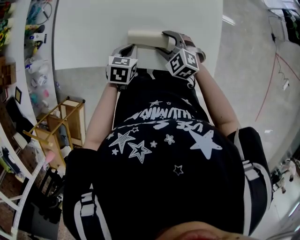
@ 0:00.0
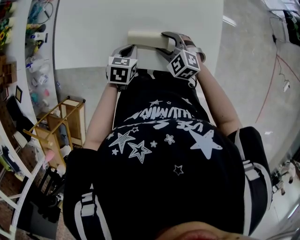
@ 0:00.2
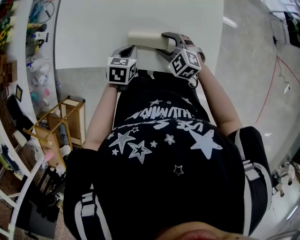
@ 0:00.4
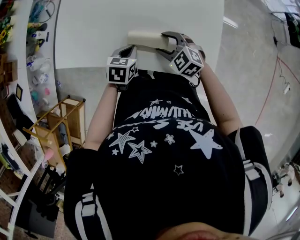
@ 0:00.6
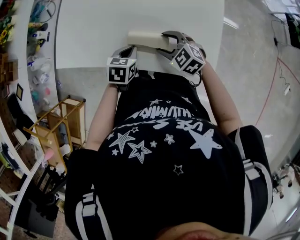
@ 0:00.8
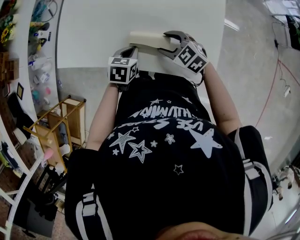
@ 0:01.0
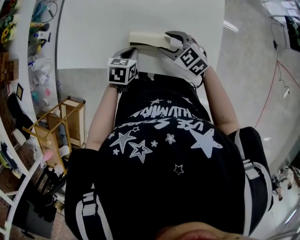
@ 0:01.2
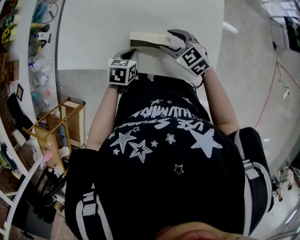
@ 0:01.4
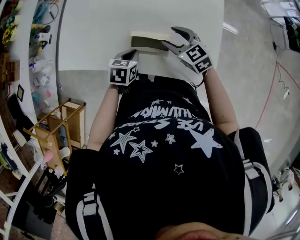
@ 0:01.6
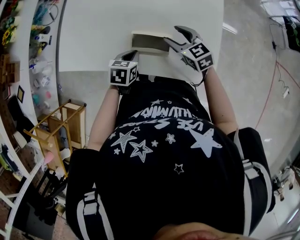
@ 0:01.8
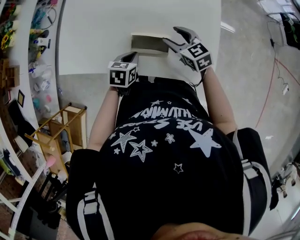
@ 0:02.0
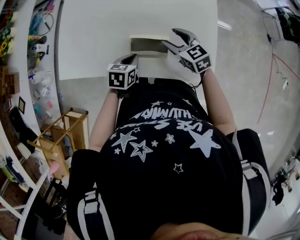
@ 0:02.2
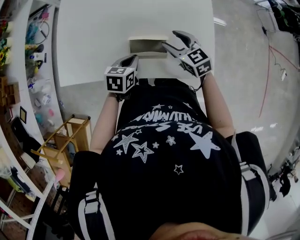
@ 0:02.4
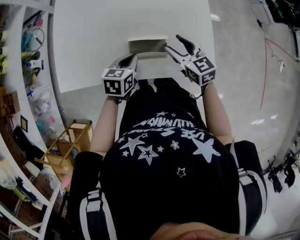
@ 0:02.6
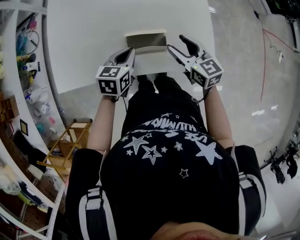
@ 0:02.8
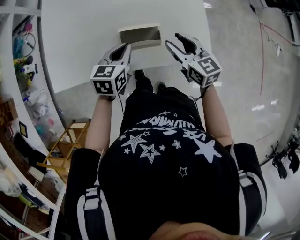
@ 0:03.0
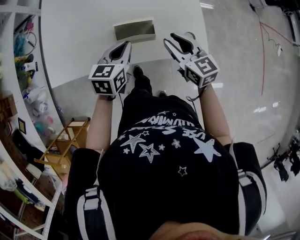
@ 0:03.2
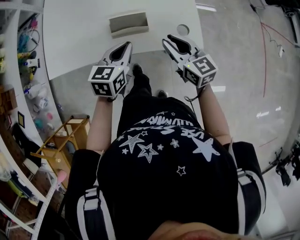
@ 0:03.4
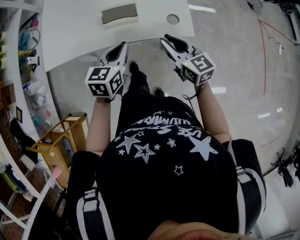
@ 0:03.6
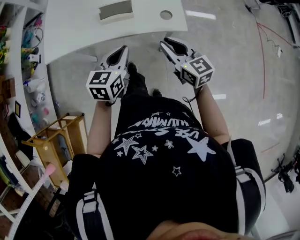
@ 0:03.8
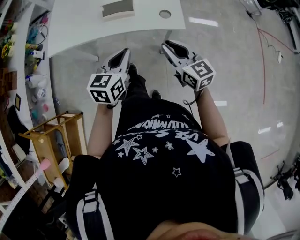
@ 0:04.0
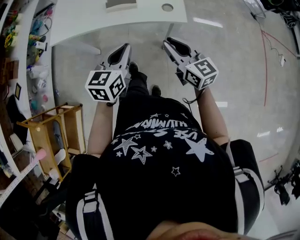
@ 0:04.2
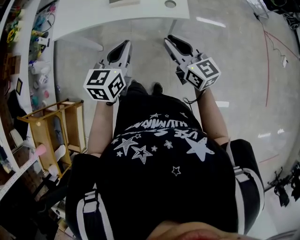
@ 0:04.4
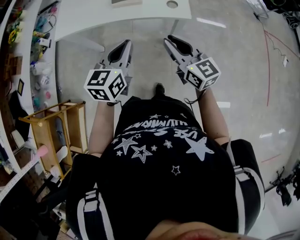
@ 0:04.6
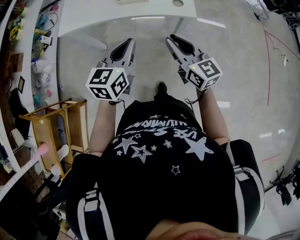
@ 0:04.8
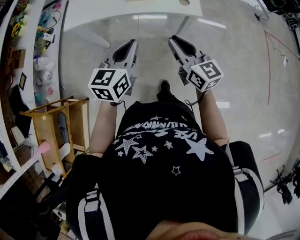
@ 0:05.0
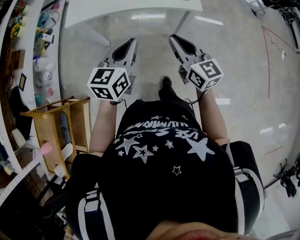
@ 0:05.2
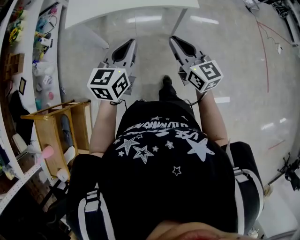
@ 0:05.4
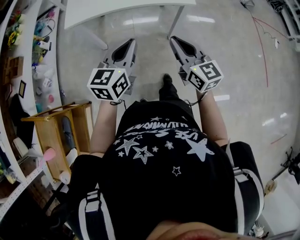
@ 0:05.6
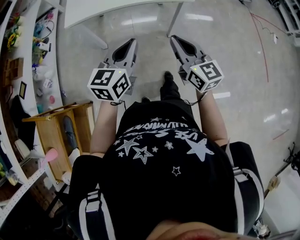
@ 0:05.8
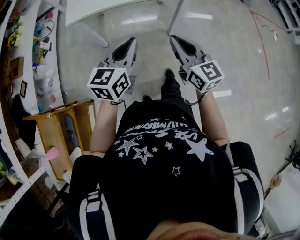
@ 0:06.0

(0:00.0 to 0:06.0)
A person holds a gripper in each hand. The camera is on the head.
0:00.0 - 0:01.6: The right gripper changes place by roughly 5 cm, and rotates approximately 20 degrees.
0:01.6 - 0:03.0: The right gripper moves backward, some 10 cm, and changes its angle by approximately 40 degrees; the left gripper moves upward, about 5 cm, and swivels about 20 degrees.
0:03.0 - 0:04.4: The two grippers go about 30 cm backward. The right gripper closes.
0:04.4 - 0:06.0: The grippers both shift backward and to the left by some 25 cm.

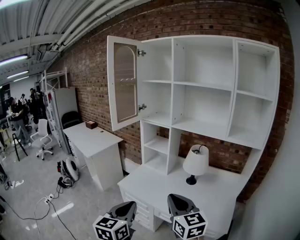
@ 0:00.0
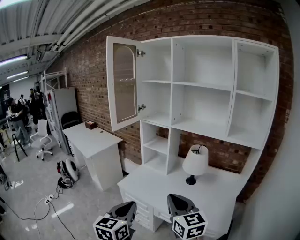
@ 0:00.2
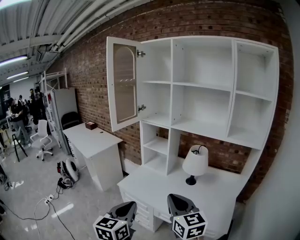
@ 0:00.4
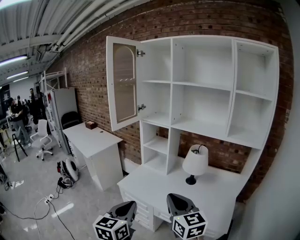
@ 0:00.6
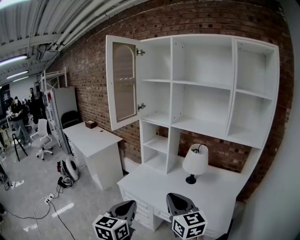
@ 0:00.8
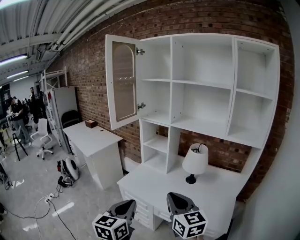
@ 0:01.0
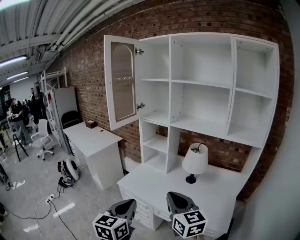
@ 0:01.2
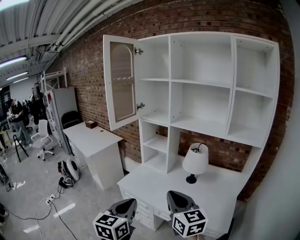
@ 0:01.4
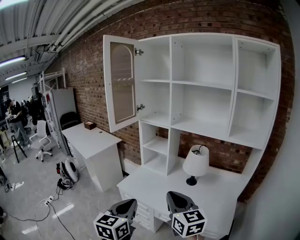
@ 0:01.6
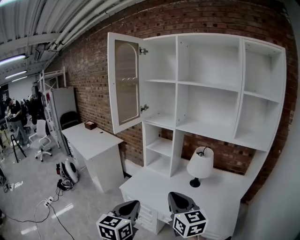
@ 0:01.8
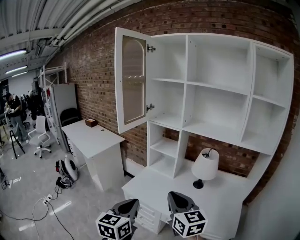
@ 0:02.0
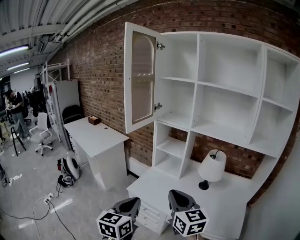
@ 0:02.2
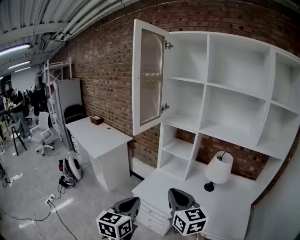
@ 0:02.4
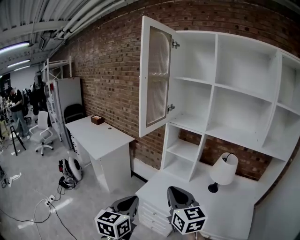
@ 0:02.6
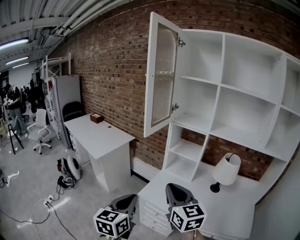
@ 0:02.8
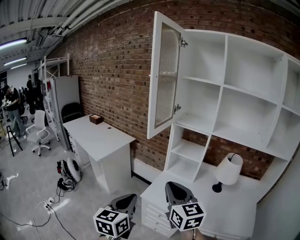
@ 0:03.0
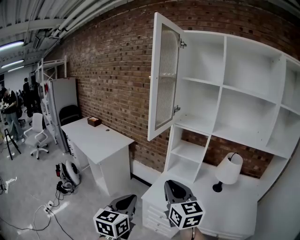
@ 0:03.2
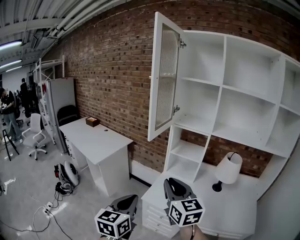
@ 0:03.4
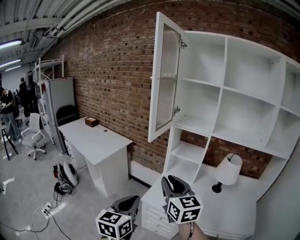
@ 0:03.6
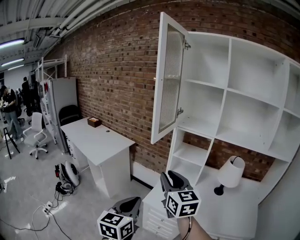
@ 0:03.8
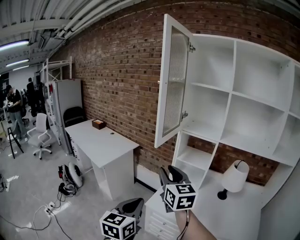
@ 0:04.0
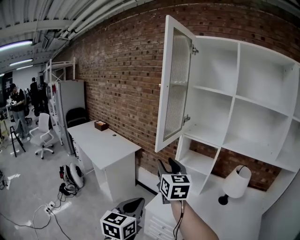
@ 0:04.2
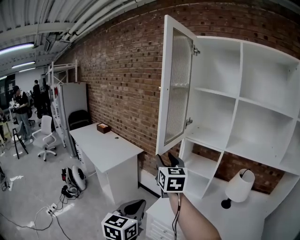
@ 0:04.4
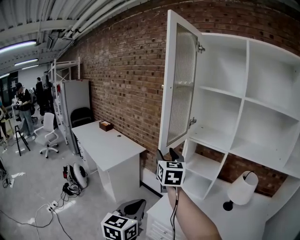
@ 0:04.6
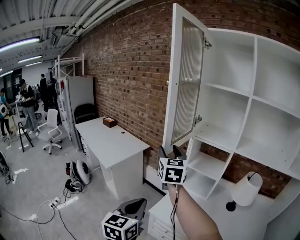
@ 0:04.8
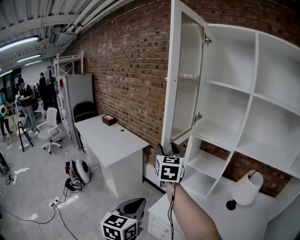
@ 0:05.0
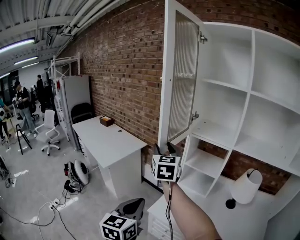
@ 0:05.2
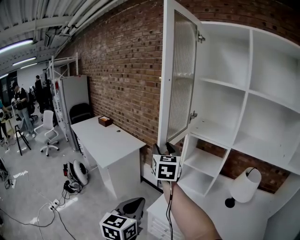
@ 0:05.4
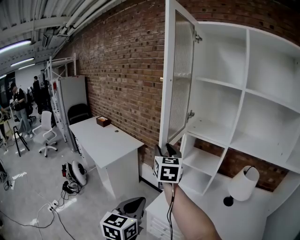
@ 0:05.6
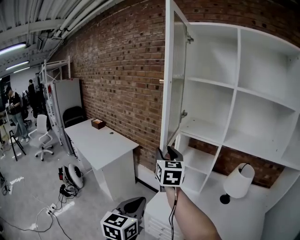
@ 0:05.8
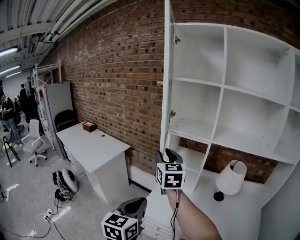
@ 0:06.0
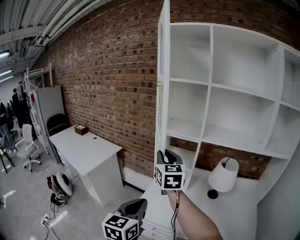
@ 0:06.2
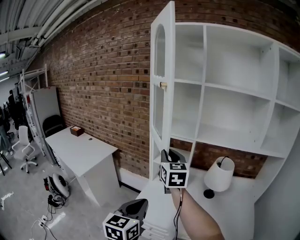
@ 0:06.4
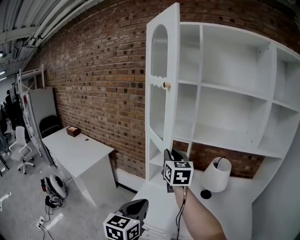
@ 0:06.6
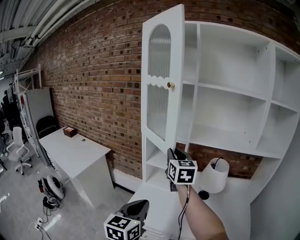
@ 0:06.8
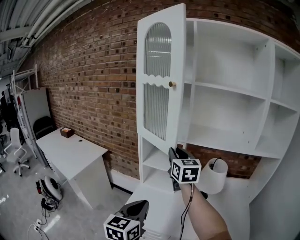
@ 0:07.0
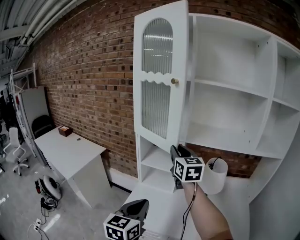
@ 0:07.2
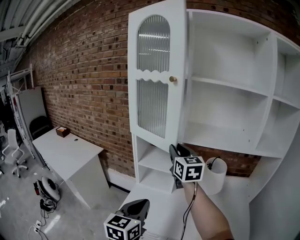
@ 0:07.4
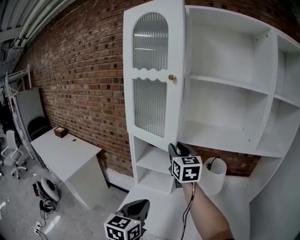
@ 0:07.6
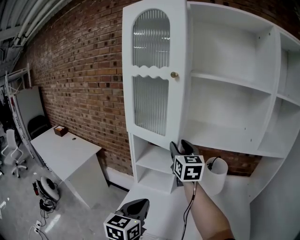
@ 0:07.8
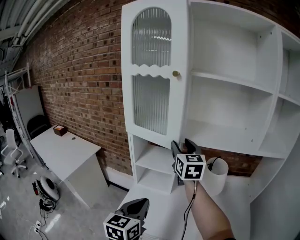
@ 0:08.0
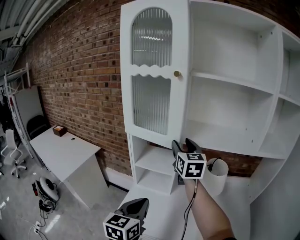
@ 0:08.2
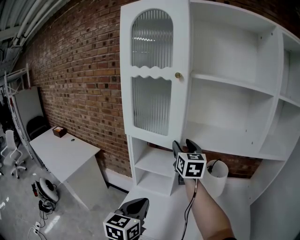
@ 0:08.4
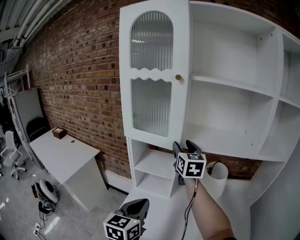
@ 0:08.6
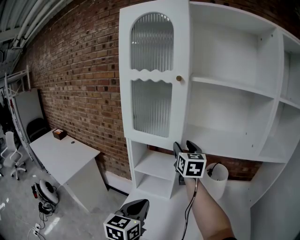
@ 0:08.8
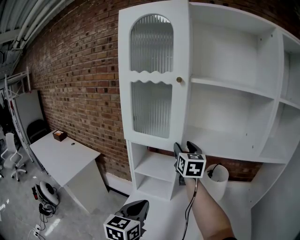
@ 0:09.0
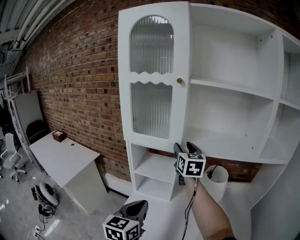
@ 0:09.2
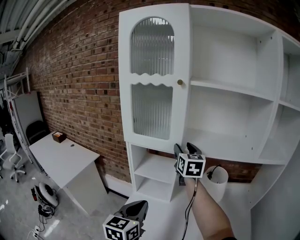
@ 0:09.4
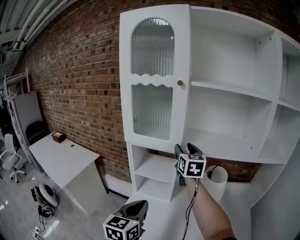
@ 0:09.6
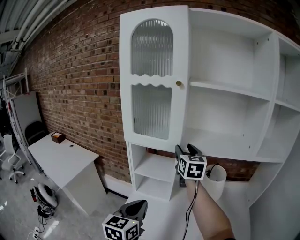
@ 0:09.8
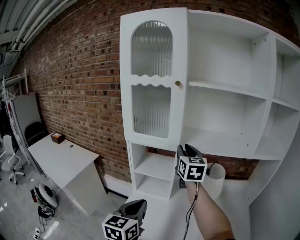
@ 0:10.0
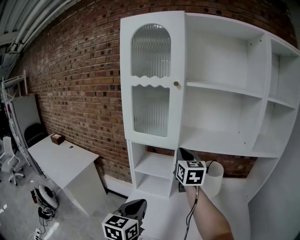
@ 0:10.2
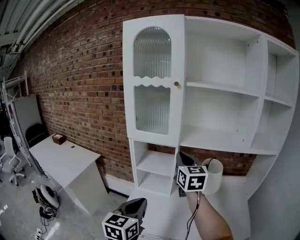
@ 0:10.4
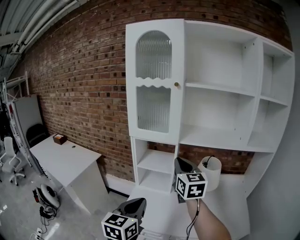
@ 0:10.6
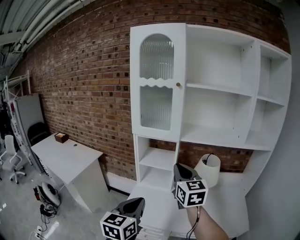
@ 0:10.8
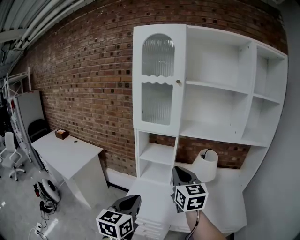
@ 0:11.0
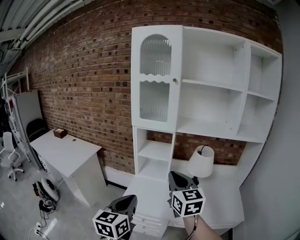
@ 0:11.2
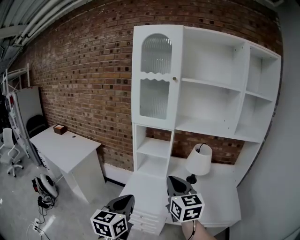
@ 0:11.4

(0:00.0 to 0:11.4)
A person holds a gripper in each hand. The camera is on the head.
0:00.0 - 0:01.4: The grippers stay close to where they were, moving slightly.
0:01.4 - 0:02.8: Both grippers move to the left and forward, roughly 30 cm.
0:02.8 - 0:04.2: The left gripper travels forward by roughly 5 cm; the right gripper travels forward and to the left by roughly 20 cm, and opens its fingers.
0:04.2 - 0:05.6: The left gripper travels forward by about 5 cm; the right gripper is displaced forward by approximately 10 cm.
0:05.6 - 0:07.2: The left gripper goes roughly 20 cm to the right. The right gripper goes roughly 30 cm to the right, and closes up.
0:07.2 - 0:08.6: The right gripper travels forward and to the right by some 10 cm, and opens, while the left gripper travels forward by roughly 10 cm.
0:08.6 - 0:10.0: The right gripper closes.
0:10.0 - 0:11.4: The right gripper heads backward, covering approximately 35 cm, and closes its fingers, while the left gripper moves backward, about 20 cm.

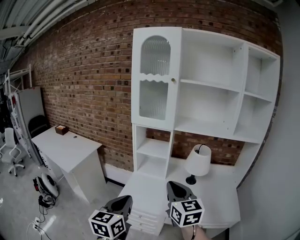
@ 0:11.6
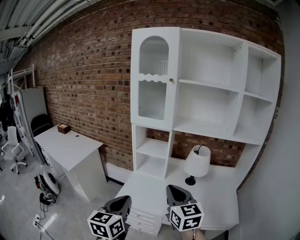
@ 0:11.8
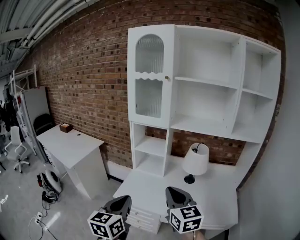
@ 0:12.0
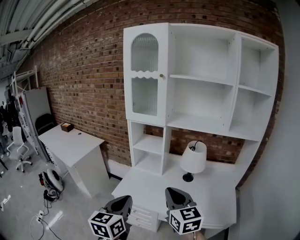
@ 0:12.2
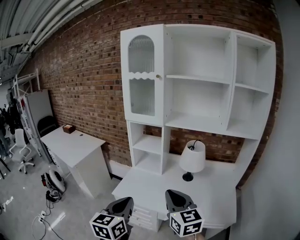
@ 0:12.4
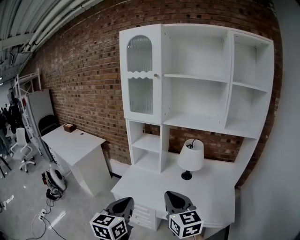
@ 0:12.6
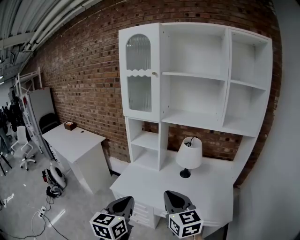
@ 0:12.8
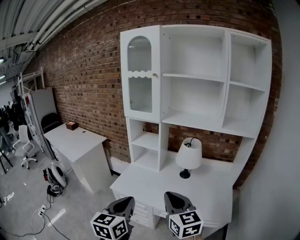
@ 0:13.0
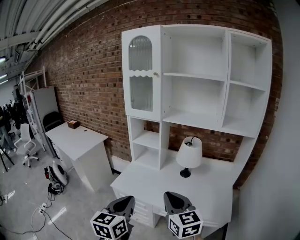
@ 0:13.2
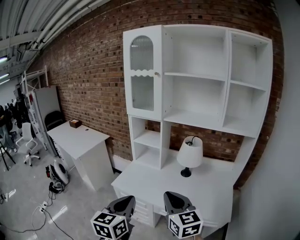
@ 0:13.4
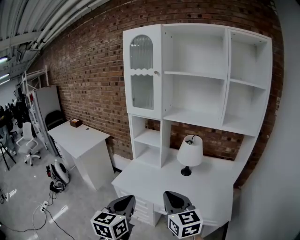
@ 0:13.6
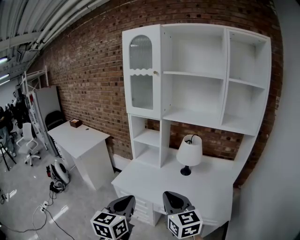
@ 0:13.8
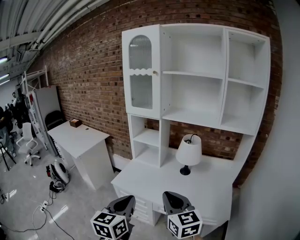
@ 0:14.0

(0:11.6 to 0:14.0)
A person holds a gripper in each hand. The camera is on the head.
0:11.6 - 0:12.8: Both grippers move to the right and backward, some 15 cm.
0:12.8 - 0:14.0: The left gripper changes place by some 5 cm.

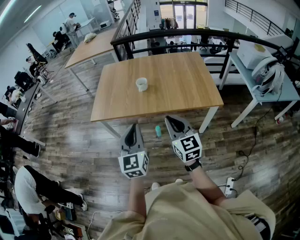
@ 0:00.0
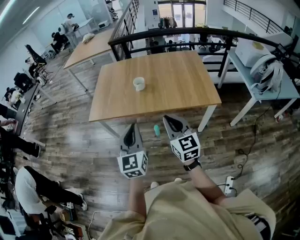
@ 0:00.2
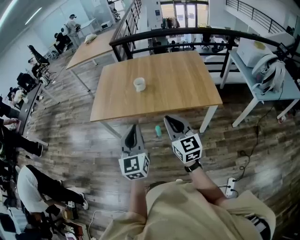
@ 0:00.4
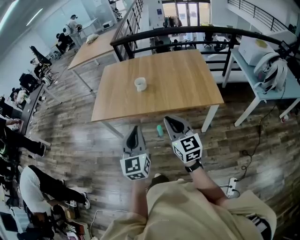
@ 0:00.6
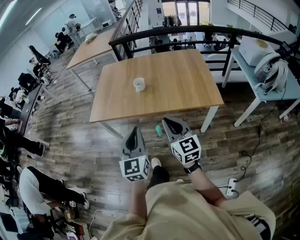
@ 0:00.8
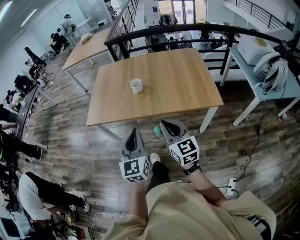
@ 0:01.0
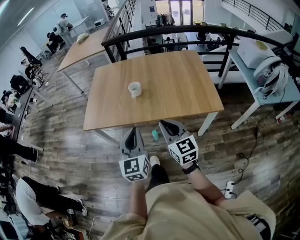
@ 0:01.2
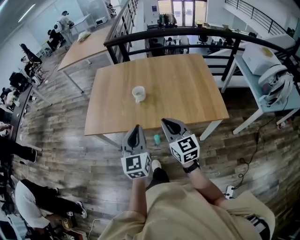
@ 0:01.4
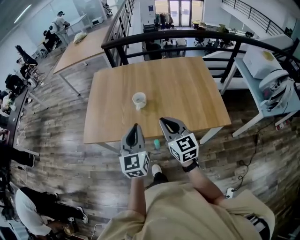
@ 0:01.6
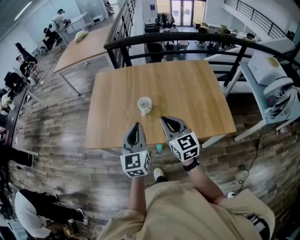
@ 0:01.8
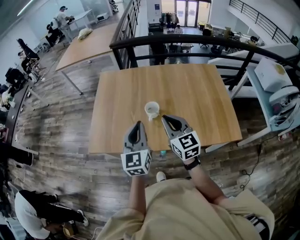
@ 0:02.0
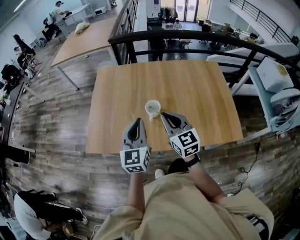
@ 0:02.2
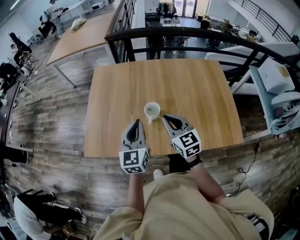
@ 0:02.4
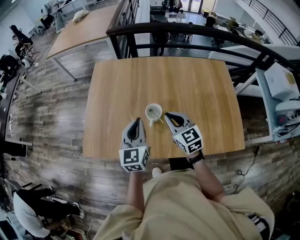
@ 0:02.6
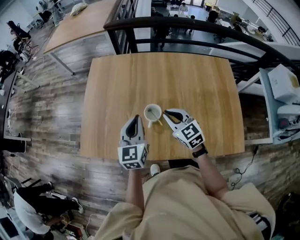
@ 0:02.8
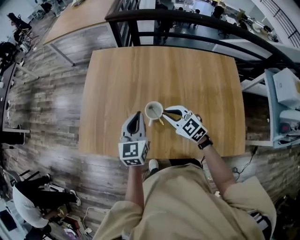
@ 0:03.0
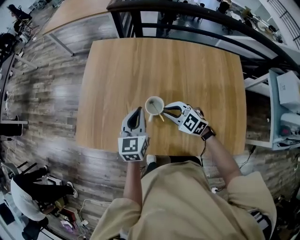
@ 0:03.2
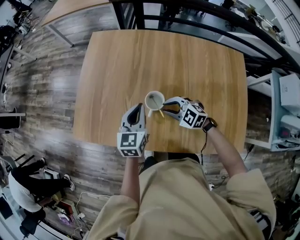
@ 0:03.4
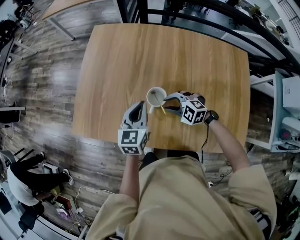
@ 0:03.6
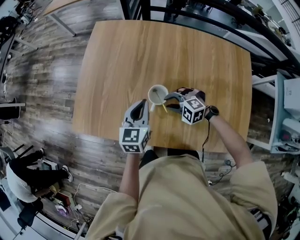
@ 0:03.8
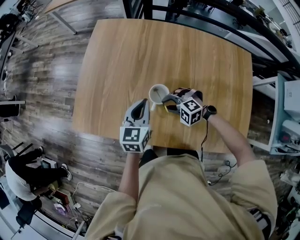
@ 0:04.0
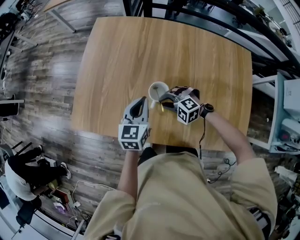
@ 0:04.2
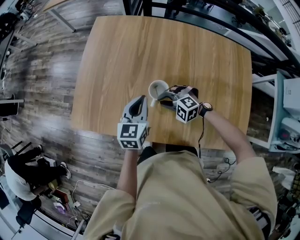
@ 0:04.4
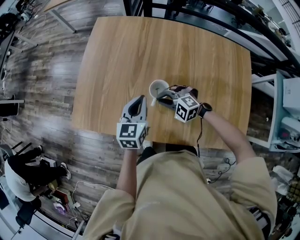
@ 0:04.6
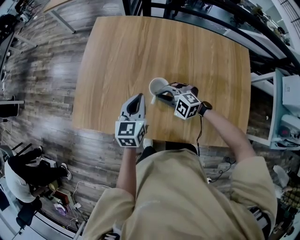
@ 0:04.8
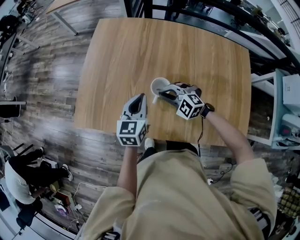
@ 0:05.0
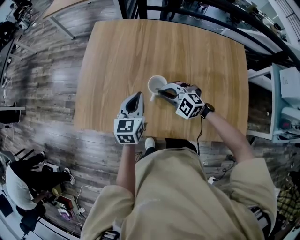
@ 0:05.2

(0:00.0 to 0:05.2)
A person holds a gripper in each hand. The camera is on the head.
0:00.0 - 0:01.8: The grippers both shift forward by some 30 cm.
0:01.8 - 0:03.4: Both grippers move forward and downward, roughly 30 cm. The right gripper angles its fingers downward, by about 30 degrees; the left gripper swivels some 20 degrees.
0:03.4 - 0:05.2: The right gripper travels downward and back again, roughly 5 cm each way.
